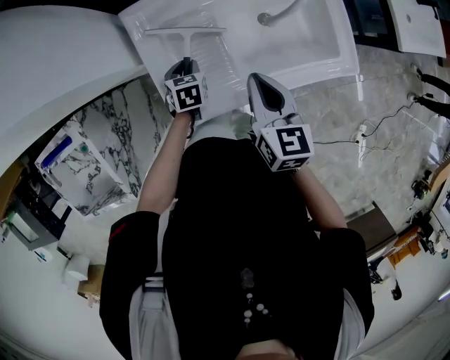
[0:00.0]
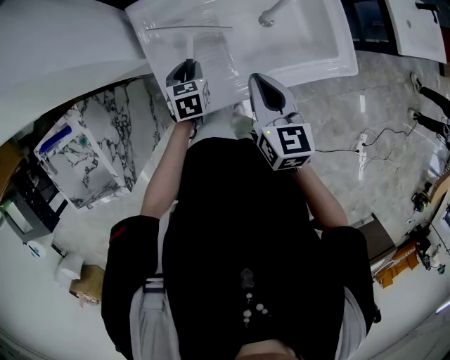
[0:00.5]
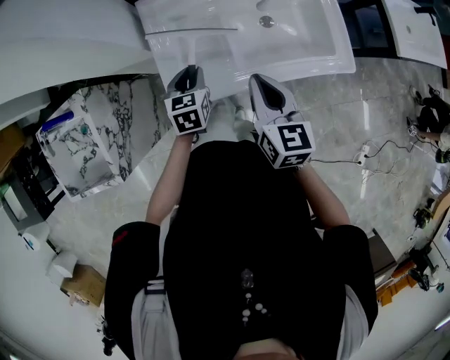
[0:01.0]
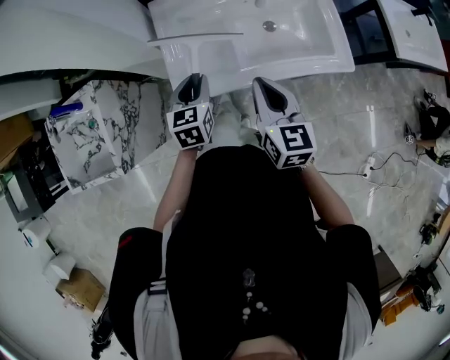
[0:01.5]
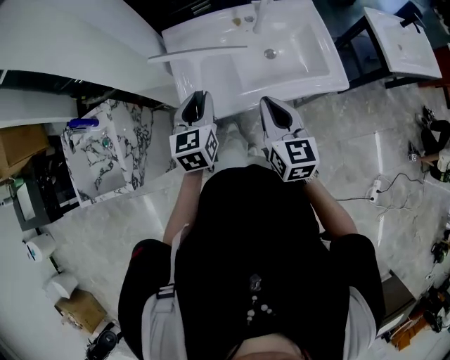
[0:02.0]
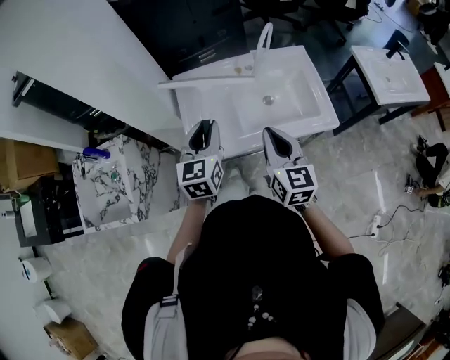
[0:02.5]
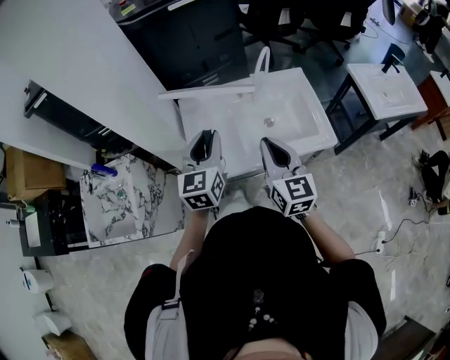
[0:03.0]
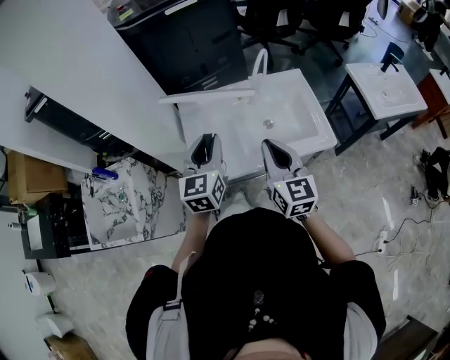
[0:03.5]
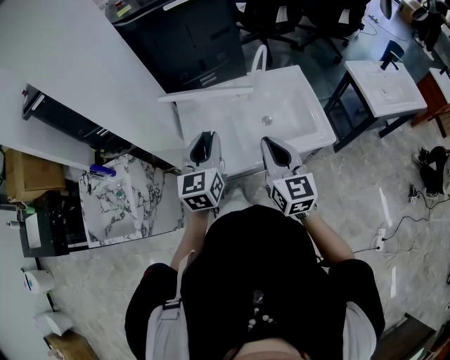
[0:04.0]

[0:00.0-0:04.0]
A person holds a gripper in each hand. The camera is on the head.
0:00.0 to 0:02.0: The right gripper travels backward and upward by about 15 cm. The left gripper moves upward and backward, approximately 30 cm, and tilts its fingers some 30 degrees upward.
0:02.0 to 0:04.0: The two grippers go roughly 10 cm upward.

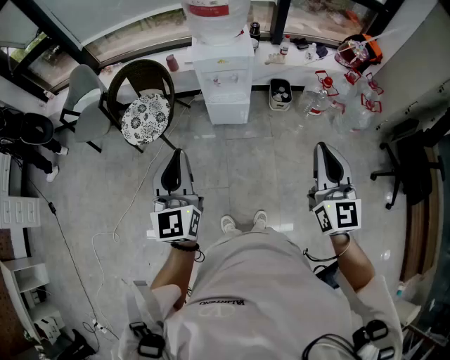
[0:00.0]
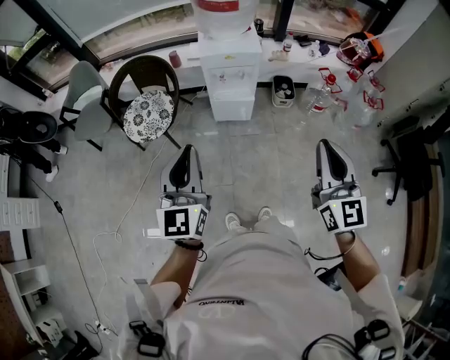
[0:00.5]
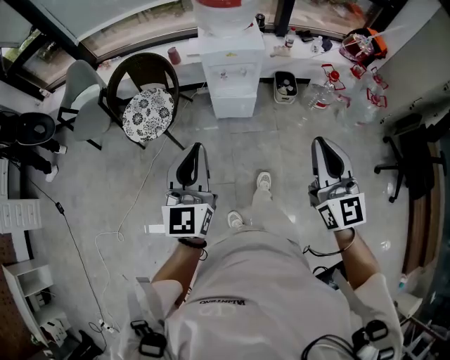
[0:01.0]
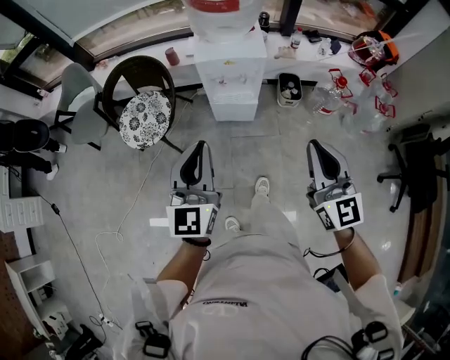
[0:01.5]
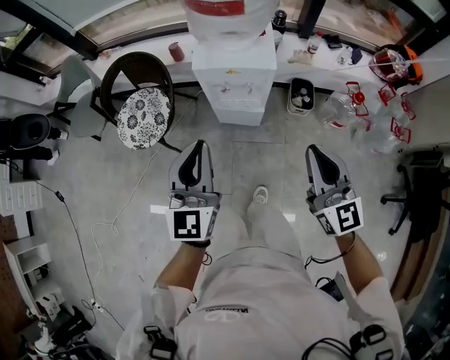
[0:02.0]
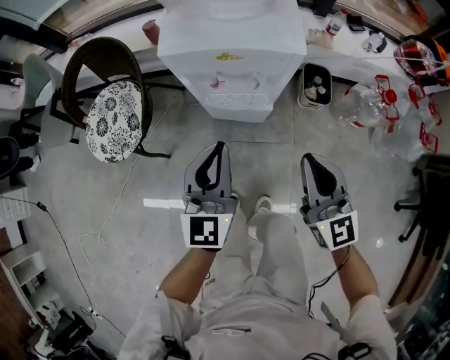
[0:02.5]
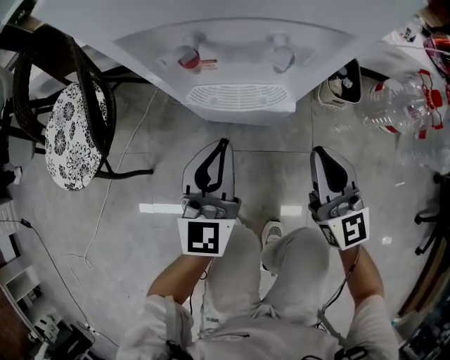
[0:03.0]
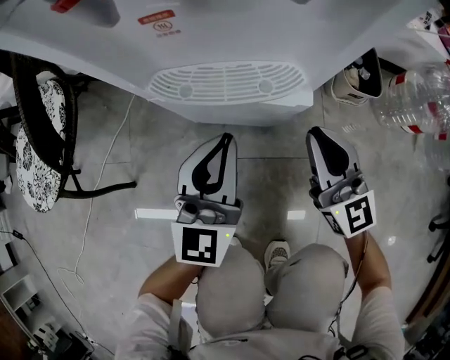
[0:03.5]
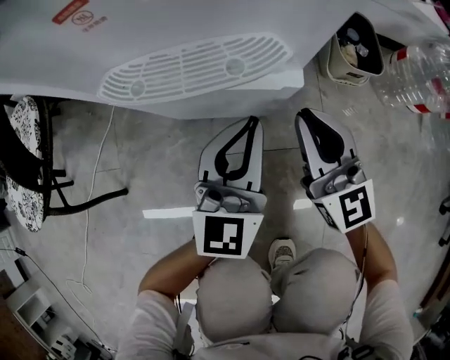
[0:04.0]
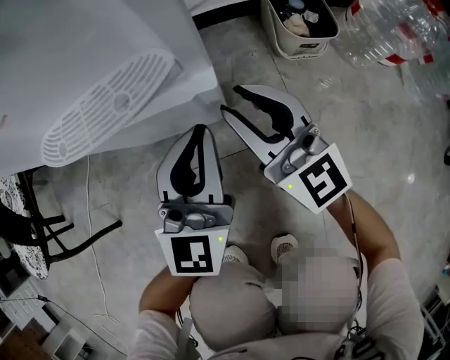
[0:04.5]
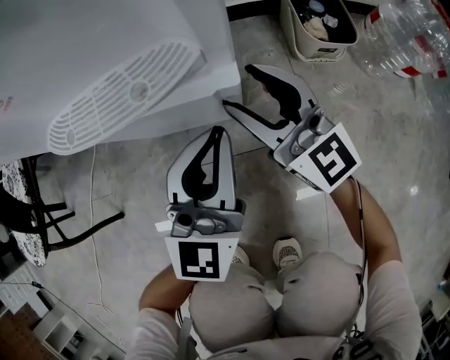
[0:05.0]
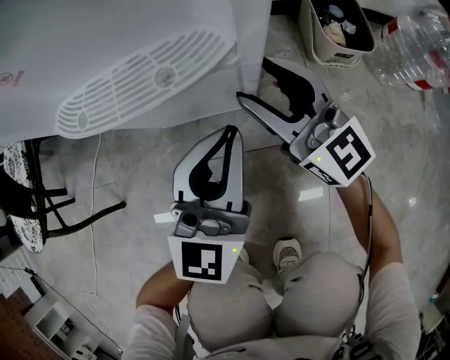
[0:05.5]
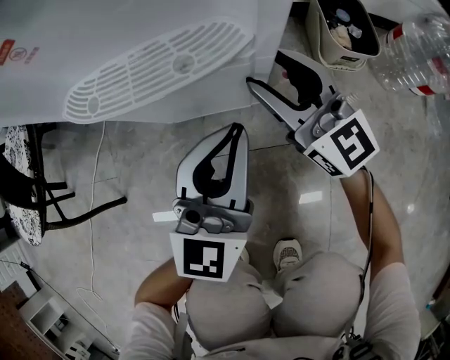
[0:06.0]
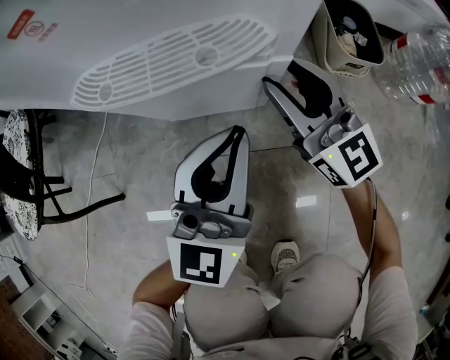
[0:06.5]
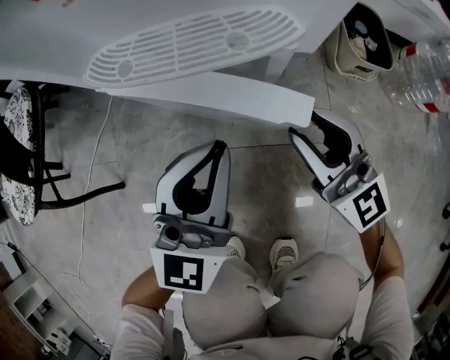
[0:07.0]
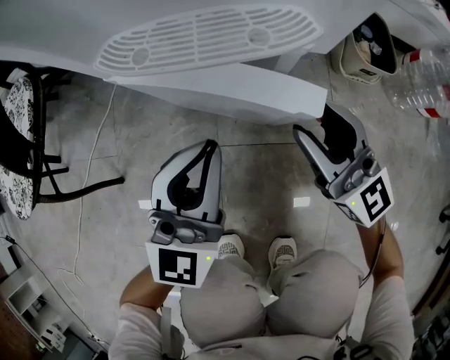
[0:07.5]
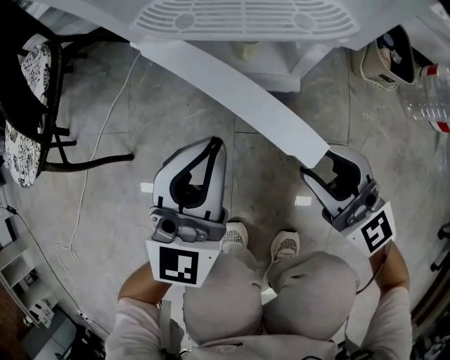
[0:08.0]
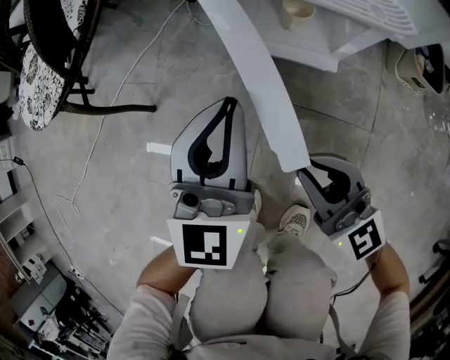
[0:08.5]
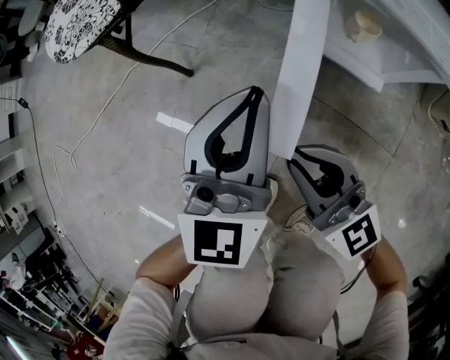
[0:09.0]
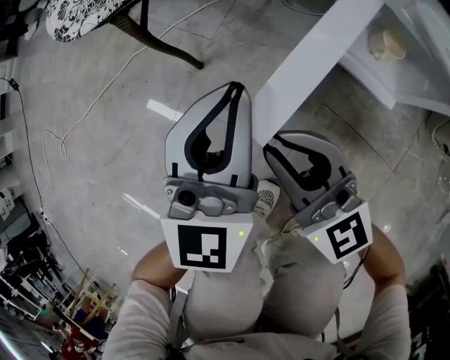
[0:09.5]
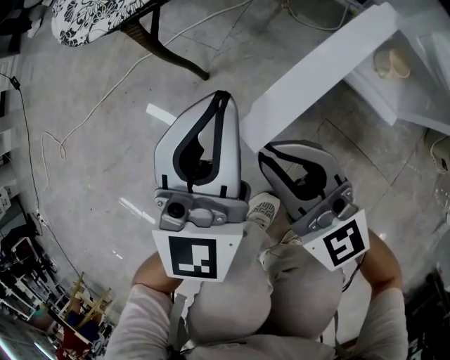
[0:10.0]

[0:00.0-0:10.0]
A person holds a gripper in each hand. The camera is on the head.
0:00.0 to 0:02.0: The grippers both shift forward by about 25 cm. The right gripper turns by roughly 20 degrees.
0:02.0 to 0:04.0: The two grippers go about 70 cm downward.
0:04.0 to 0:06.0: The right gripper shifts about 5 cm forward, and opens up.
0:06.0 to 0:08.0: The left gripper travels to the left by approximately 10 cm; the right gripper heads backward, covering approximately 15 cm.
0:08.0 to 0:10.0: The left gripper moves about 25 cm, and changes its angle by some 40 degrees; the right gripper shifts by about 30 cm, swivels roughly 30 degrees, and closes up.

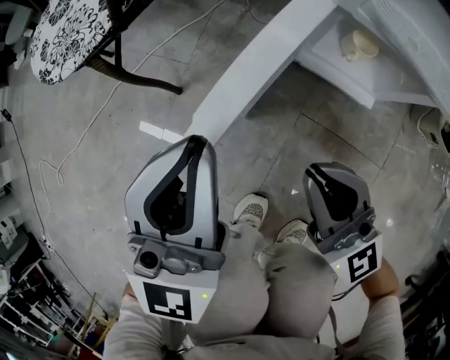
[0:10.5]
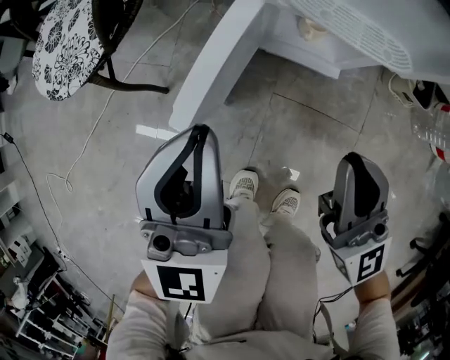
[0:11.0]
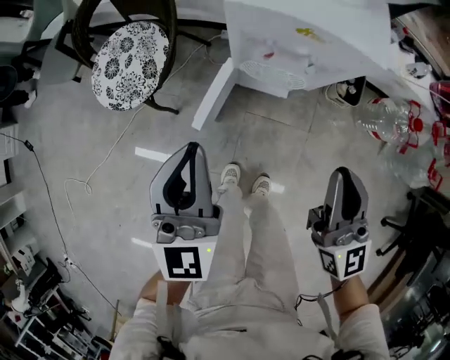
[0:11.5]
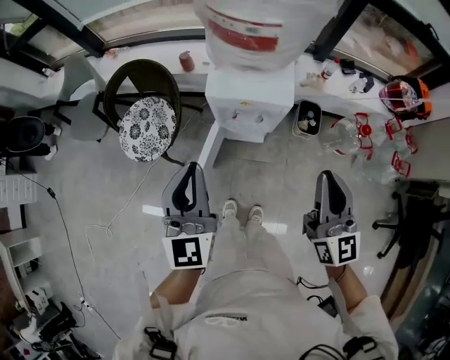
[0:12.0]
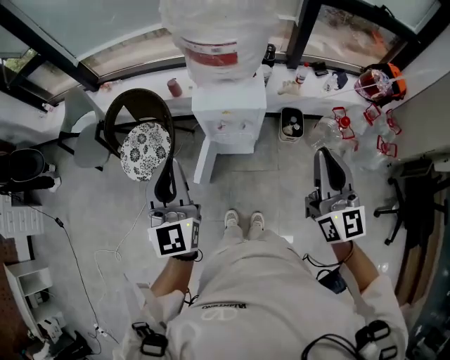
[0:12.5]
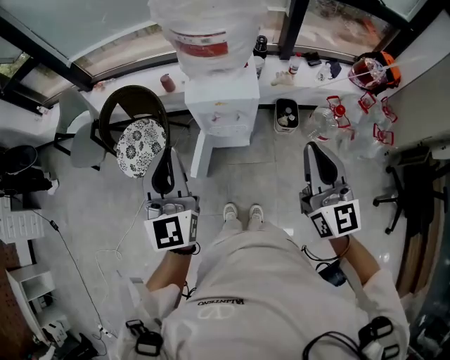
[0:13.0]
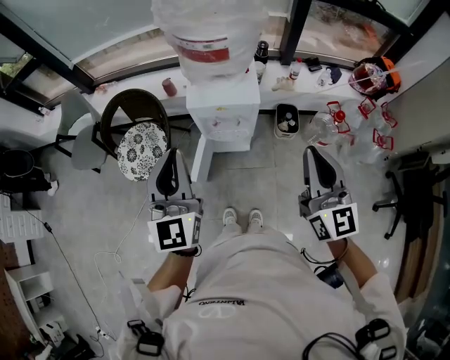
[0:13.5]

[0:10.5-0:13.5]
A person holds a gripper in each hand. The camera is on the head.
0:10.5 to 0:12.0: The grippers both shift upward by about 60 cm. The right gripper changes its angle by approximately 40 degrees.
0:12.0 to 0:13.5: The left gripper heads upward, covering approximately 10 cm. The right gripper travels upward and backward by roughly 10 cm.

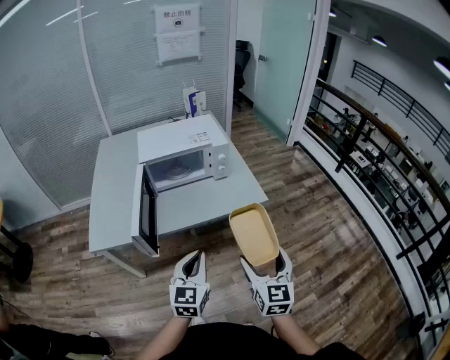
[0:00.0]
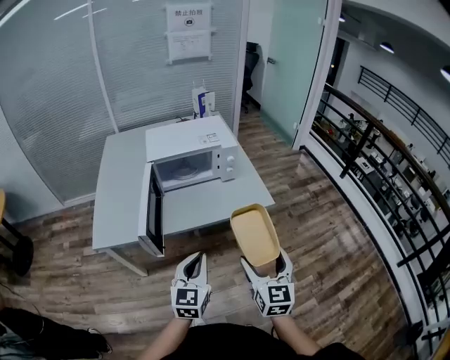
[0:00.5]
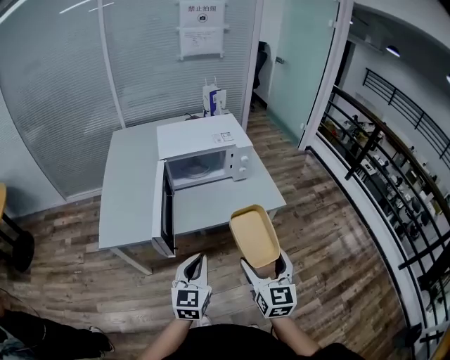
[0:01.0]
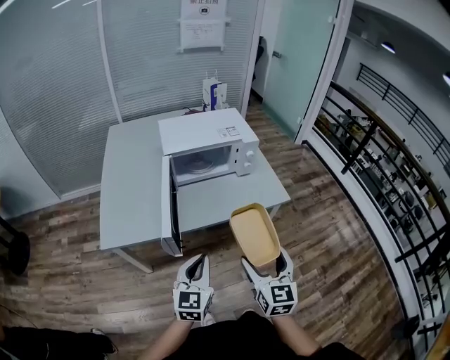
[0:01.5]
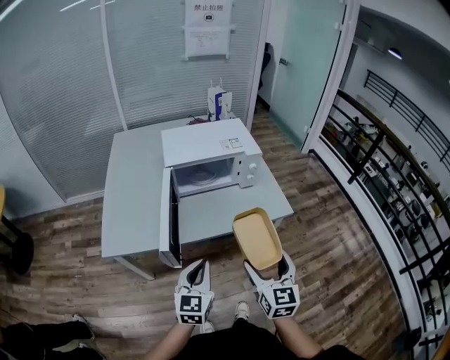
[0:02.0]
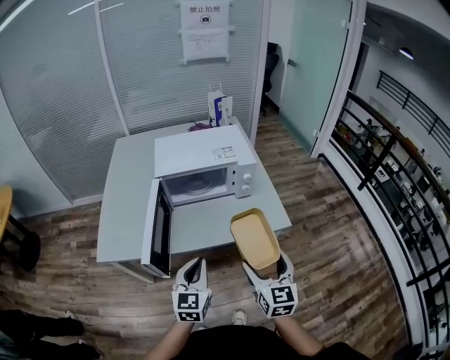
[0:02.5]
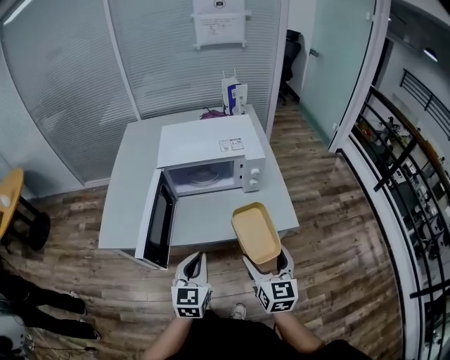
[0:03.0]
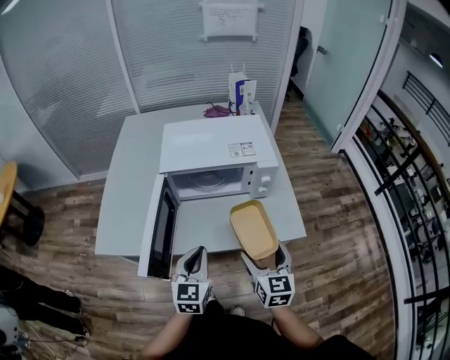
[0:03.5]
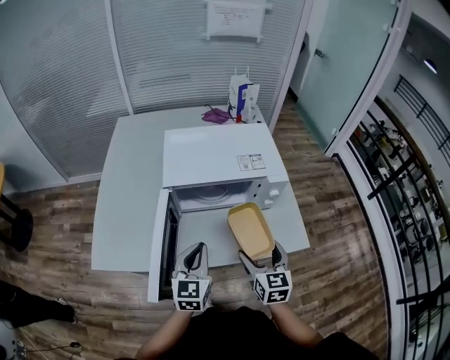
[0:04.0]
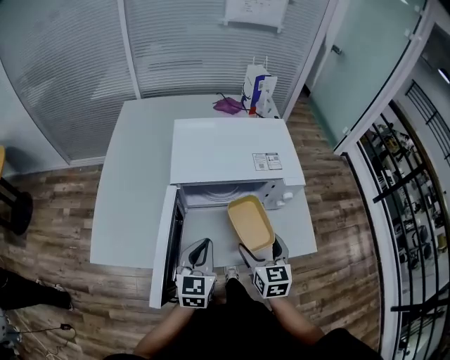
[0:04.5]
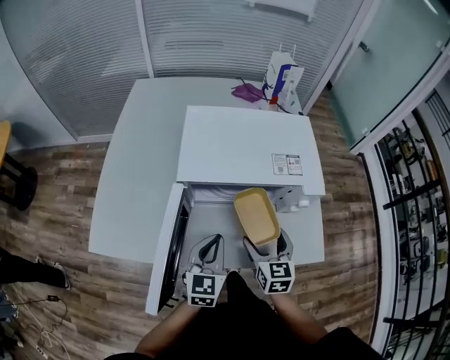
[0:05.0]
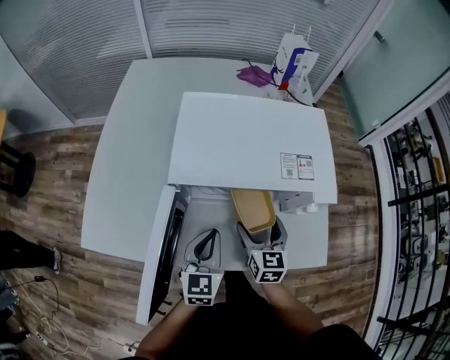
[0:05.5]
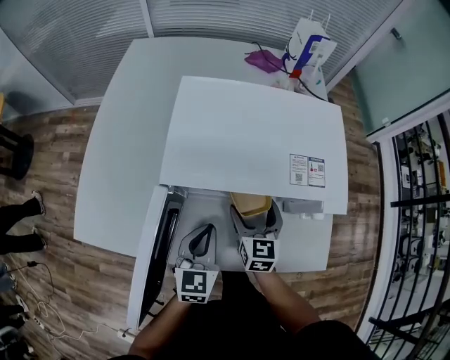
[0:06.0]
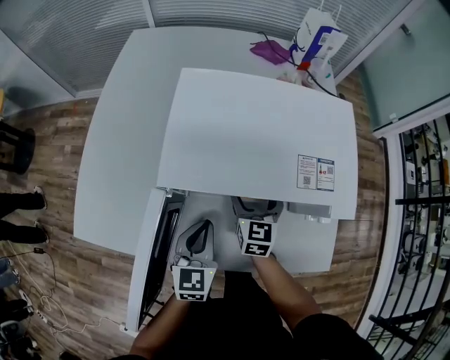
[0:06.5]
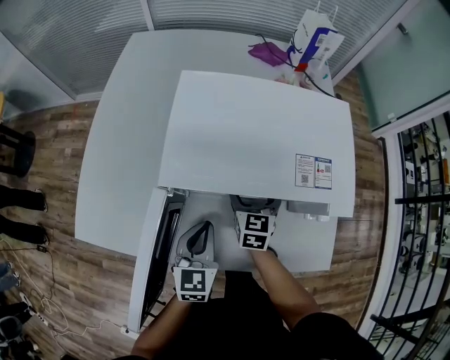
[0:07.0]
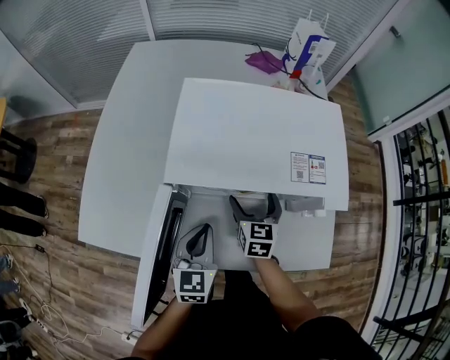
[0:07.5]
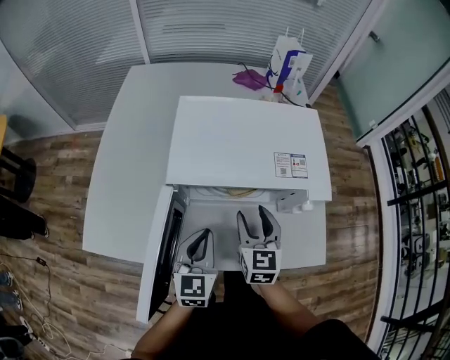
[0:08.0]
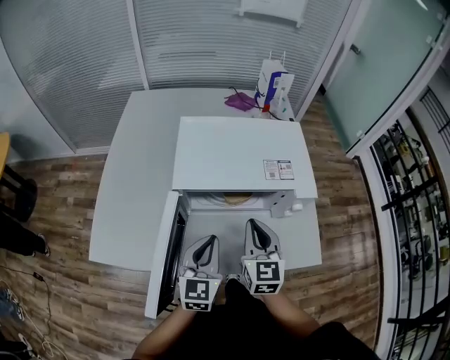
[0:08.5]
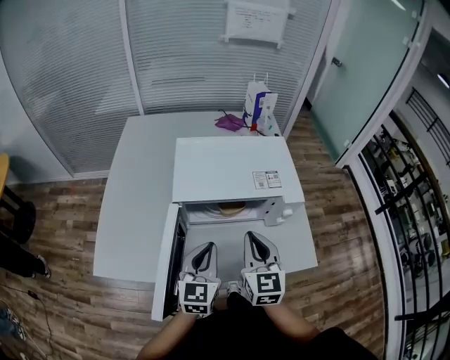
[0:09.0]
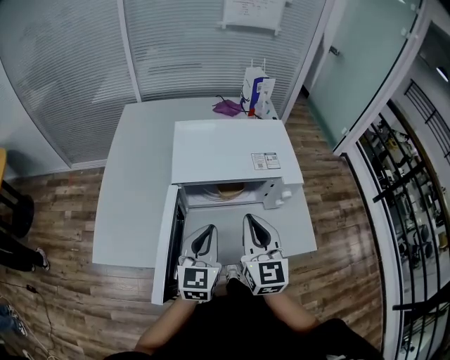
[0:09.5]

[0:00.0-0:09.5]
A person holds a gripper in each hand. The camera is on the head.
0:00.0 to 0:02.0: The left gripper goes approximately 10 cm to the left, while the right gripper moves to the left and forward, roughly 10 cm.
0:02.0 to 0:04.0: The two grippers go roughly 25 cm forward.
0:04.0 to 0:05.5: The left gripper goes about 10 cm forward and downward. The right gripper goes approximately 15 cm forward and downward.
0:05.5 to 0:07.5: The right gripper goes about 10 cm forward.
0:07.5 to 0:09.5: The left gripper moves upward and backward, approximately 15 cm. Meanwhile the right gripper moves upward and backward, about 30 cm, changes its angle by approximately 30 degrees, and closes up.
